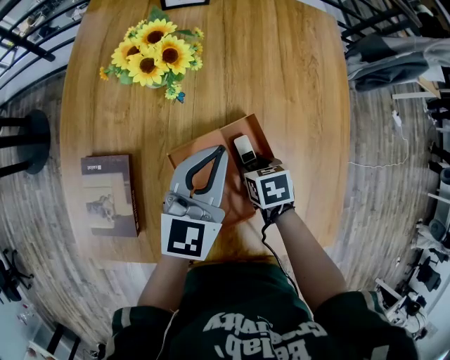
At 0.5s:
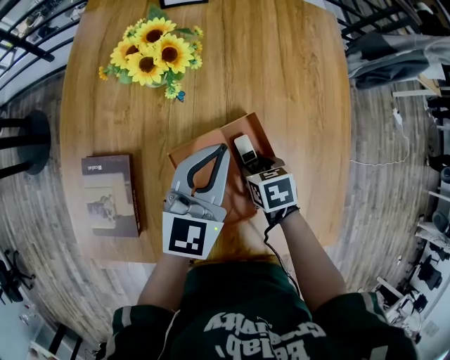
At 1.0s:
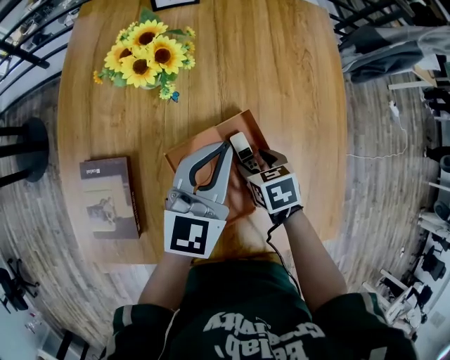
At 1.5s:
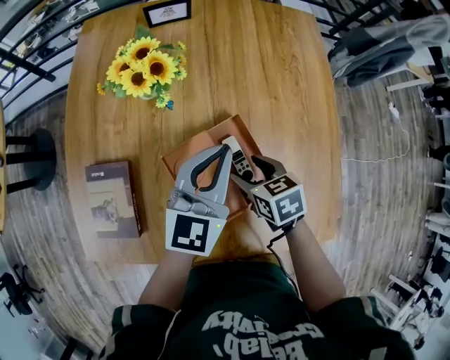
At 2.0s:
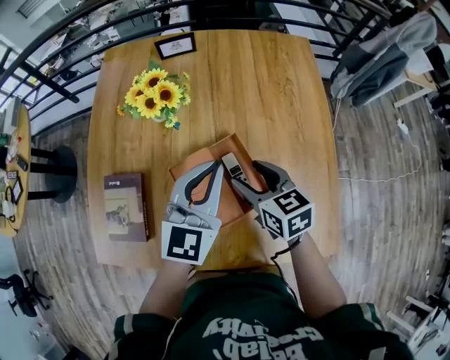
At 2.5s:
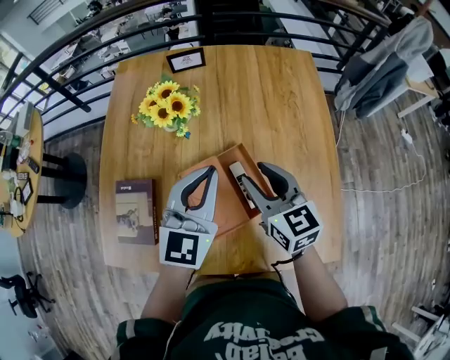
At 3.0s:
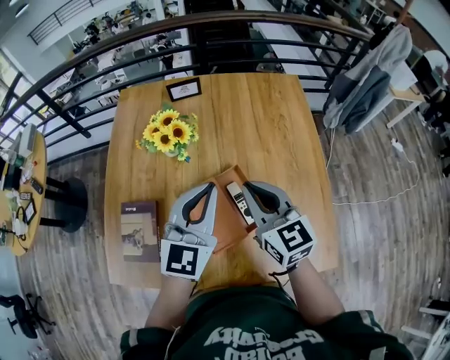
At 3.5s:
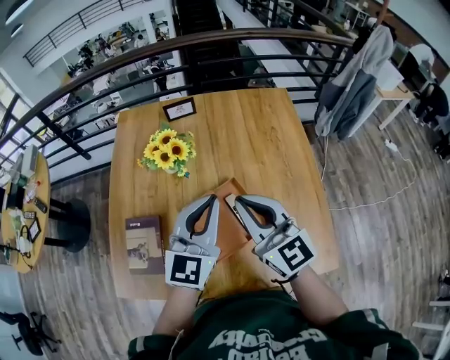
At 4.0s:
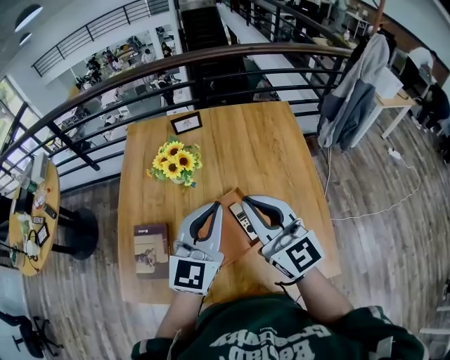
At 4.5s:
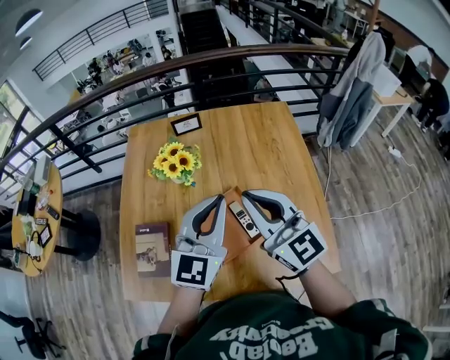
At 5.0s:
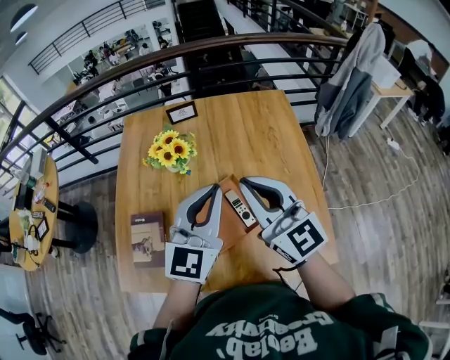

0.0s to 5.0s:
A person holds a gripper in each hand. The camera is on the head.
0.0s to 2.5s: The left gripper moves upward, about 10 cm, while the right gripper travels upward by about 25 cm, and points its fingers roughly 50 degrees further upward.
2.5s to 5.0s: The left gripper shifts some 15 cm upward and backward; the right gripper travels upward by some 20 cm, rotates roughly 30 degrees, and closes up.

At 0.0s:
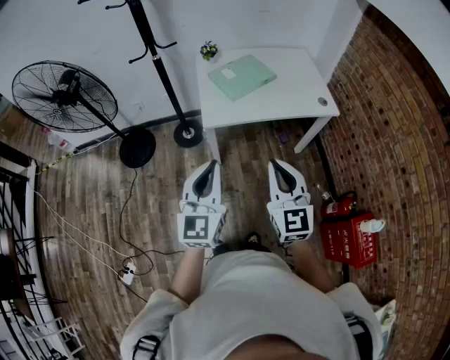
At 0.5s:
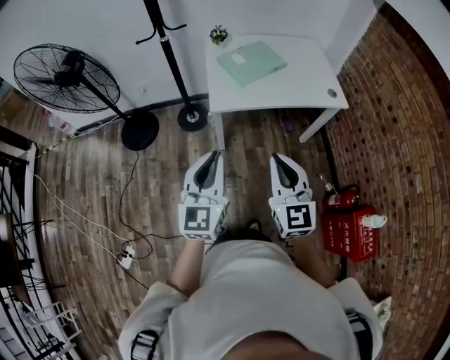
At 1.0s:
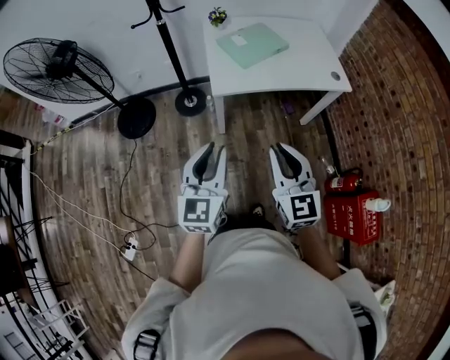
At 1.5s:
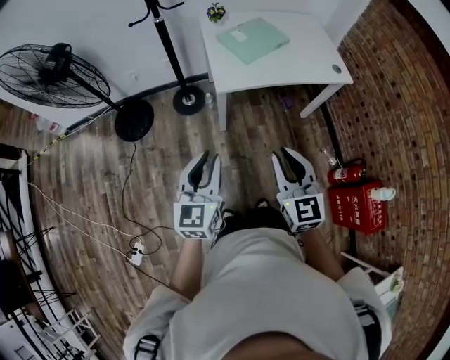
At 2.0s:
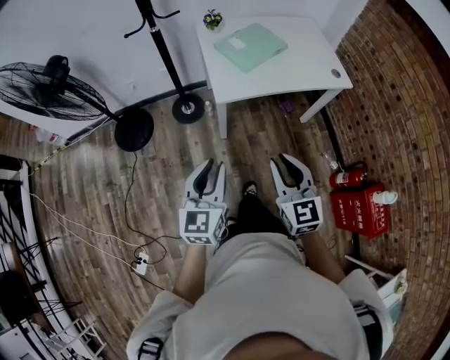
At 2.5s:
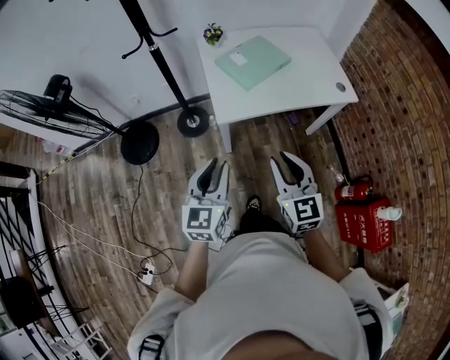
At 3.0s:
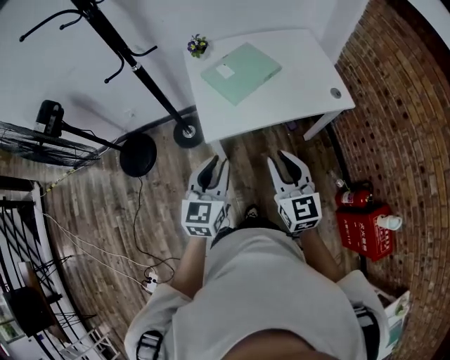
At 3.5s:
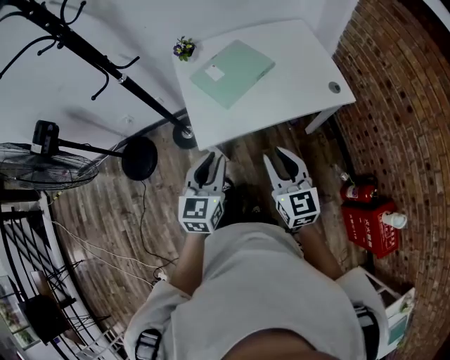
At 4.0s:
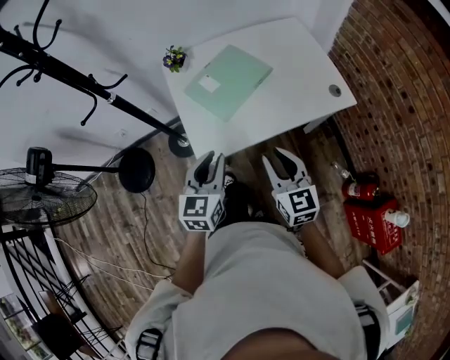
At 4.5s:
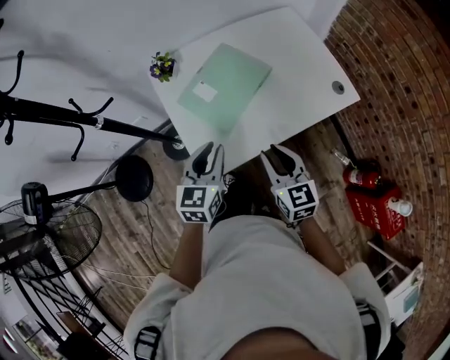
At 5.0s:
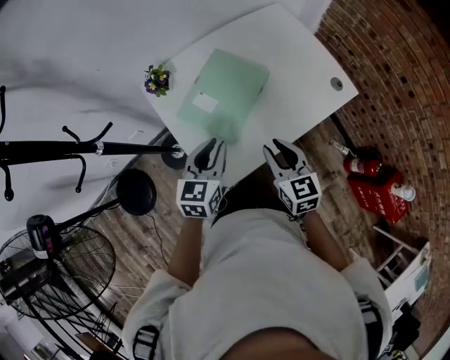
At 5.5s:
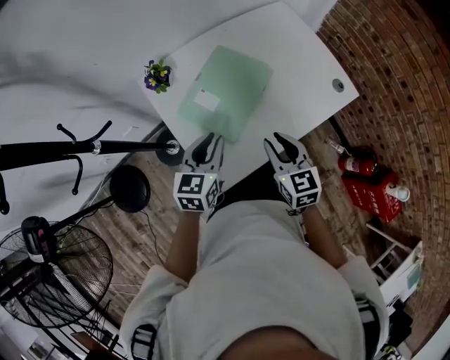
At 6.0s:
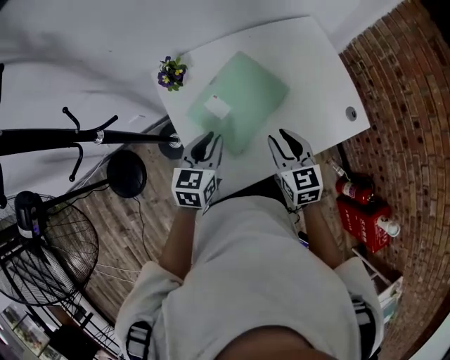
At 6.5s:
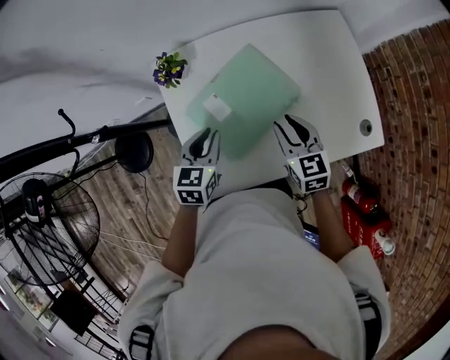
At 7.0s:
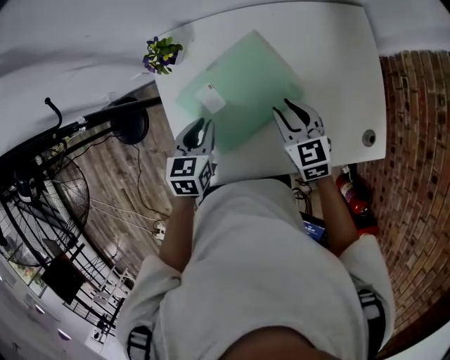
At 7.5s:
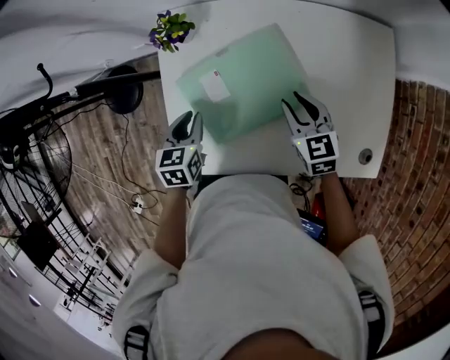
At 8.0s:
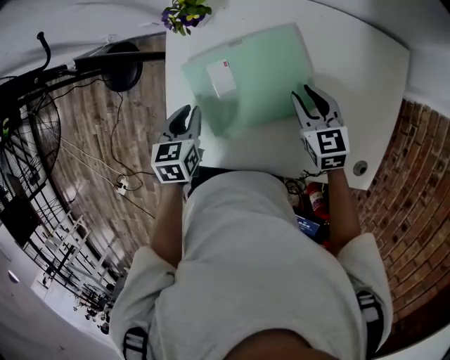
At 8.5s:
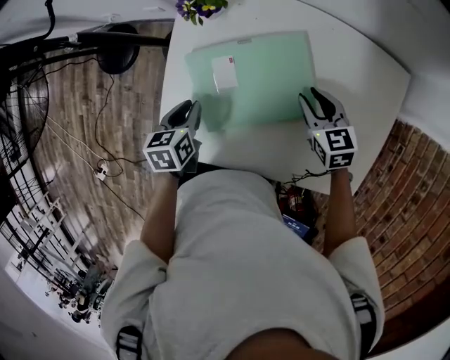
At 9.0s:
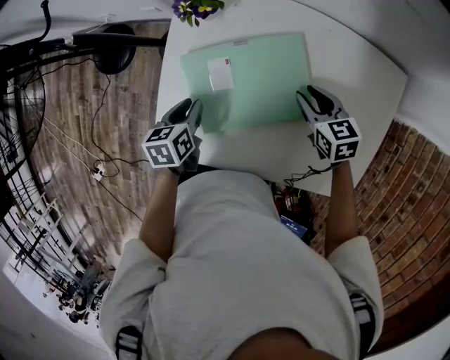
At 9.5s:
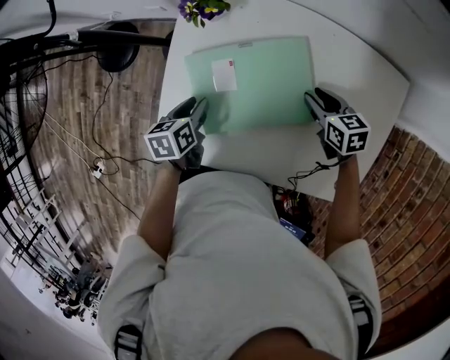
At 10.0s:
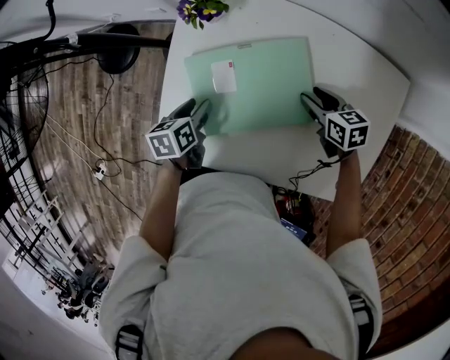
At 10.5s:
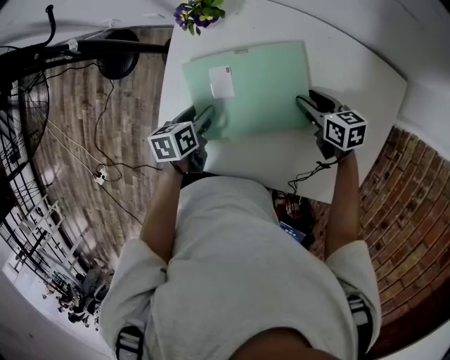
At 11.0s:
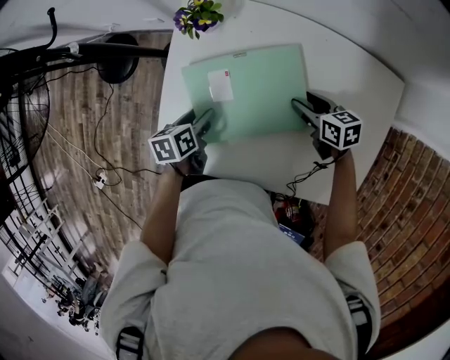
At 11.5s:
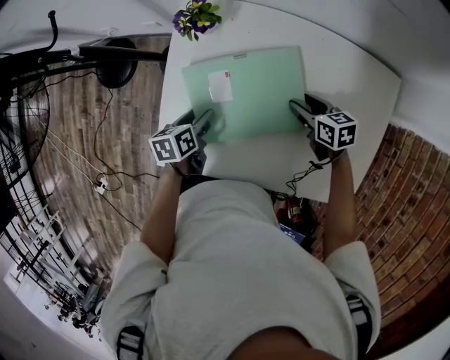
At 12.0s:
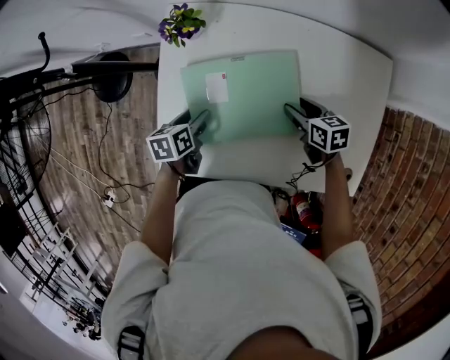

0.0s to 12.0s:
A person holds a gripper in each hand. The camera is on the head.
0.0s to 2.0s: The grippers both shift to the left and downward by roughly 15 cm.
2.0s to 4.0s: The grippers both shift forward by roughly 35 cm.
4.0s to 6.0s: Both grippers move forward, approximately 25 cm.
6.0s to 8.0s: The left gripper shifts about 10 cm downward, and swivels about 50 degrees, while the right gripper shifts by roughly 25 cm, and changes its angle by about 40 degrees.
8.0s to 10.0s: The grippers both shift downward by approximately 5 cm. The left gripper rotates some 30 degrees, and opens. Meanwhile the right gripper turns by roughly 20 degrees.
10.0s to 12.0s: The grippers make only small movements.

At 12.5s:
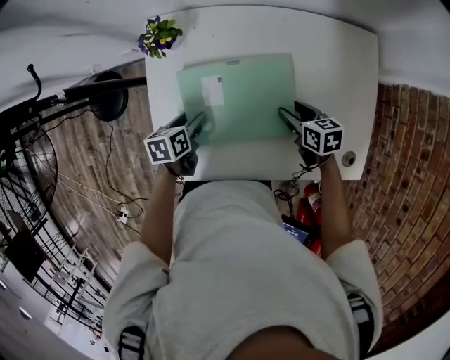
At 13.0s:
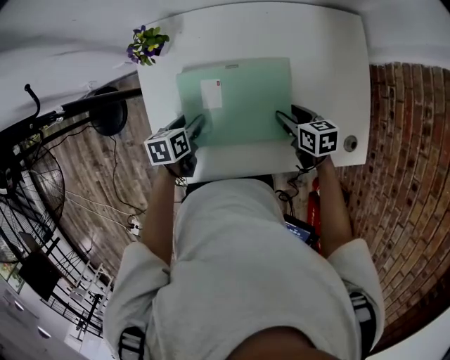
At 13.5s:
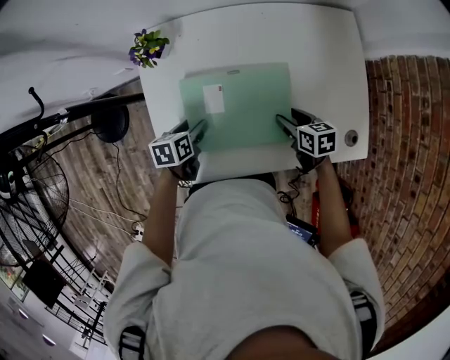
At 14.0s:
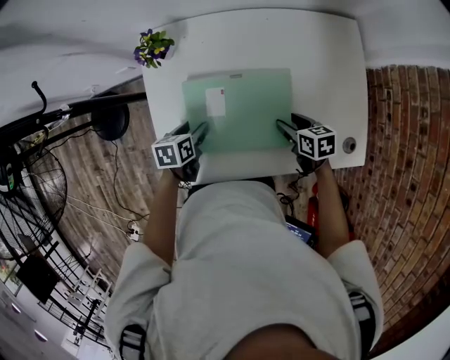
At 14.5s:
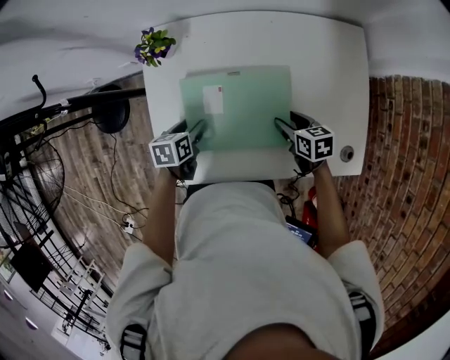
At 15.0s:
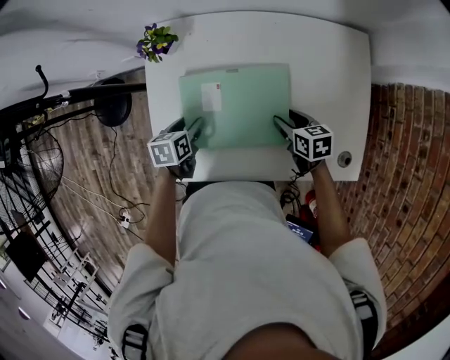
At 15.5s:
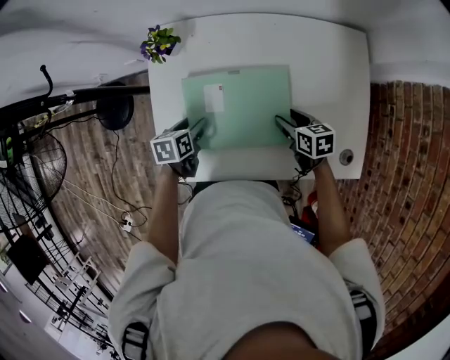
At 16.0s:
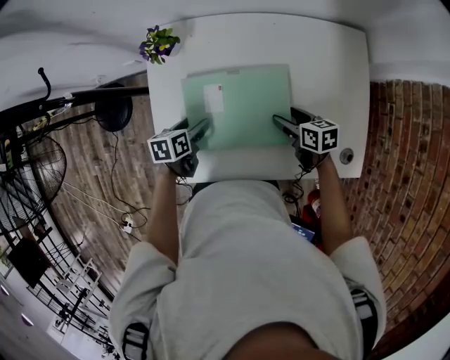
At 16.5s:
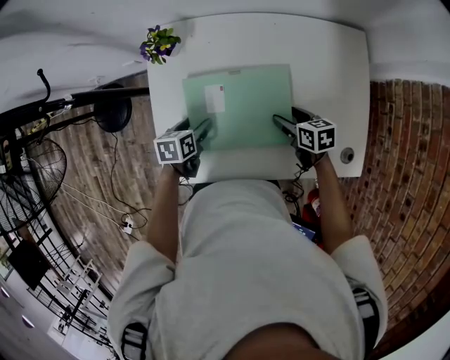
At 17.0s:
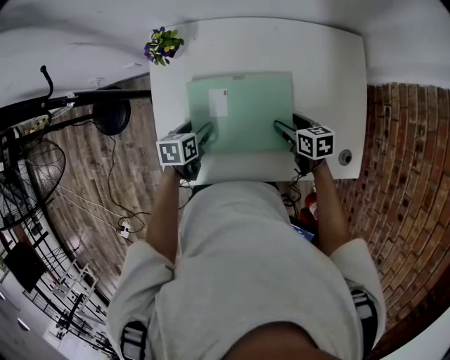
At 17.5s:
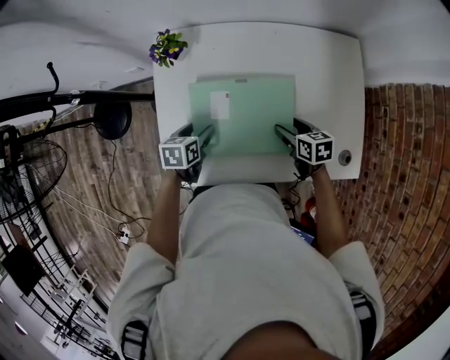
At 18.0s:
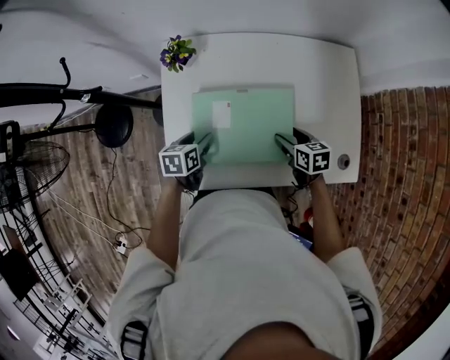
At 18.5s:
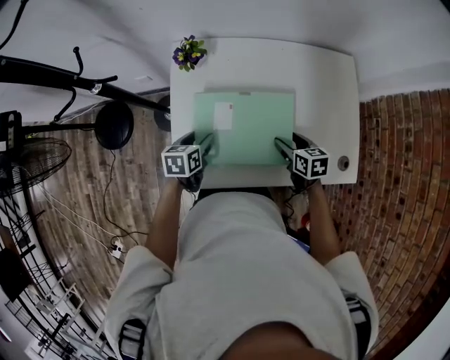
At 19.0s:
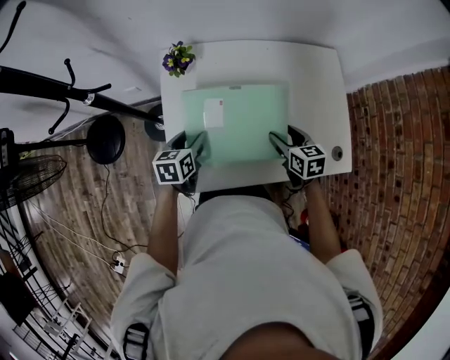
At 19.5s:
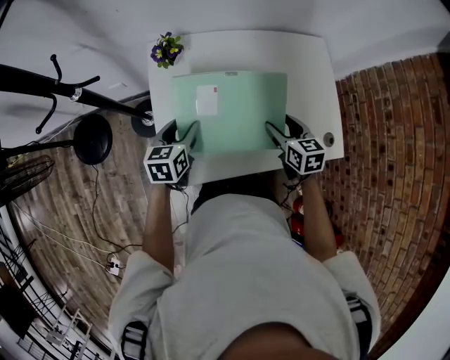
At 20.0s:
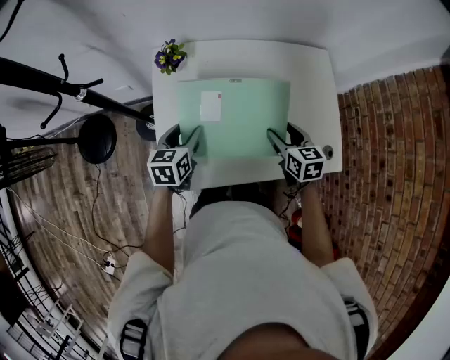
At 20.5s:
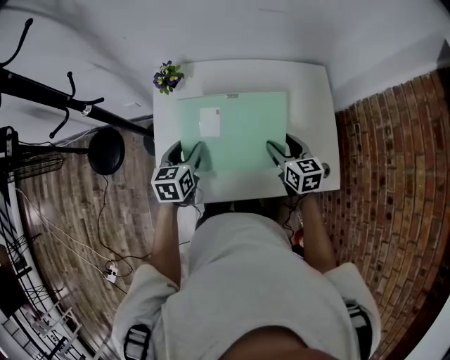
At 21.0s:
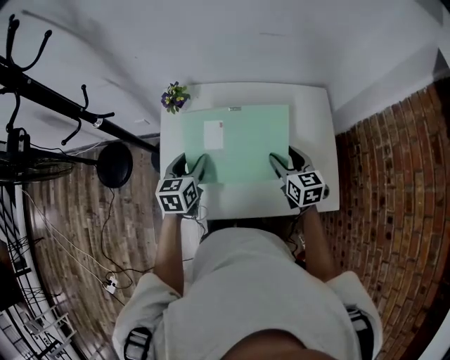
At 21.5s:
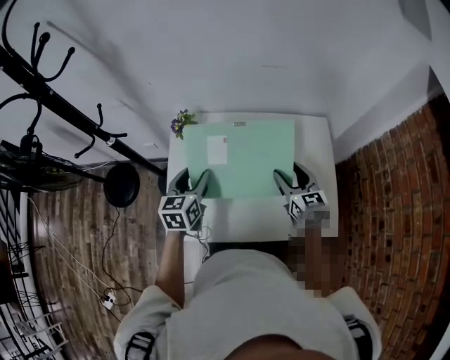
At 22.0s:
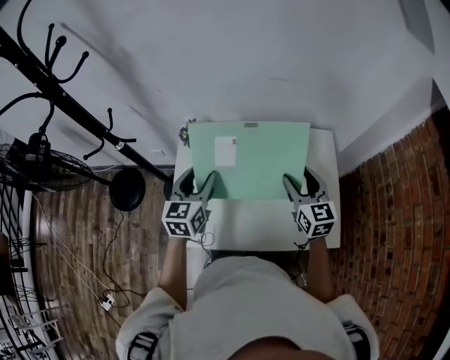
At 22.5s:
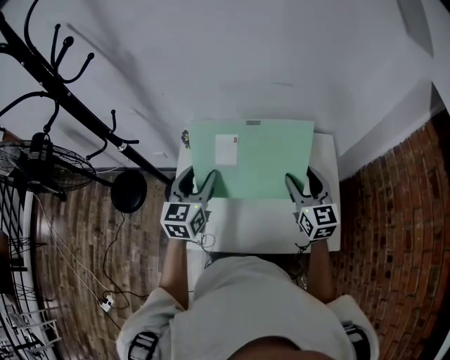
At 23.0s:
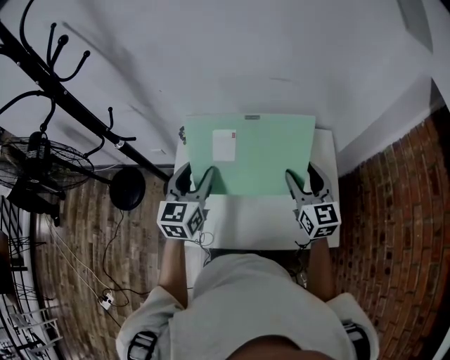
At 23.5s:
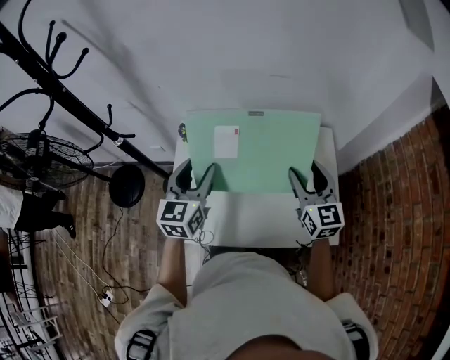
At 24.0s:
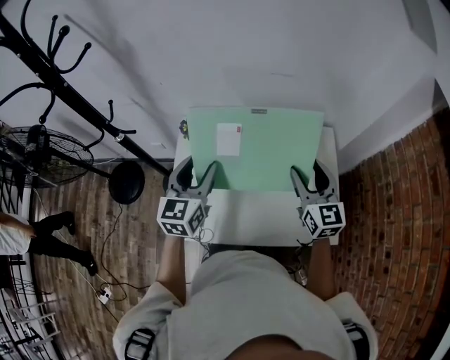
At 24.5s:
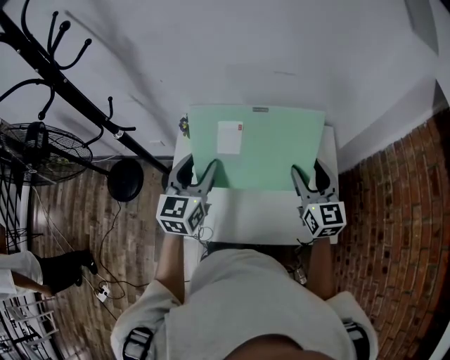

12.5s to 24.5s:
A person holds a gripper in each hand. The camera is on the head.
14.5s to 16.5s: The grippers move only a little.
16.5s to 18.5s: The left gripper is displaced upward by about 5 cm, while the right gripper goes some 10 cm backward and upward.
18.5s to 20.5s: The grippers both shift upward by roughly 10 cm.
20.5s to 22.5s: Both grippers move upward, approximately 15 cm. The right gripper turns by approximately 30 degrees. Meanwhile the left gripper rotates roughly 20 degrees.
22.5s to 24.5s: The grippers stay close to where they were, moving slightly.
